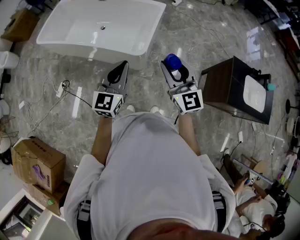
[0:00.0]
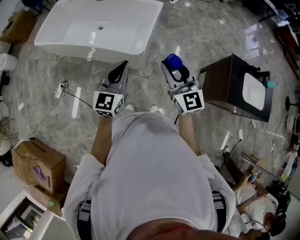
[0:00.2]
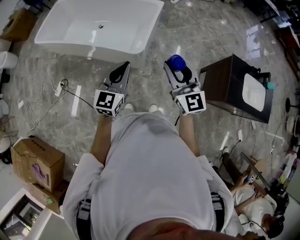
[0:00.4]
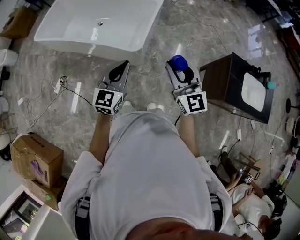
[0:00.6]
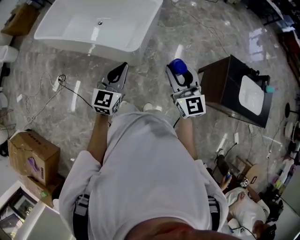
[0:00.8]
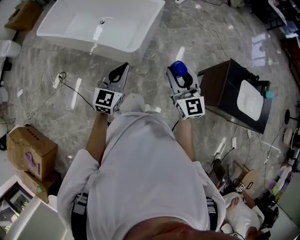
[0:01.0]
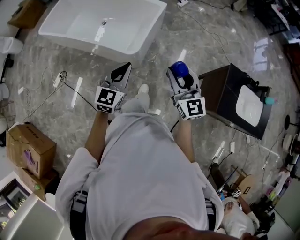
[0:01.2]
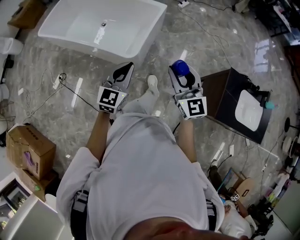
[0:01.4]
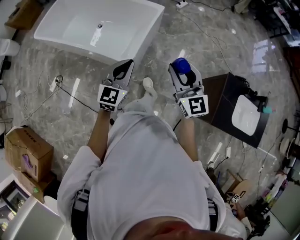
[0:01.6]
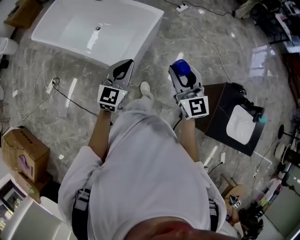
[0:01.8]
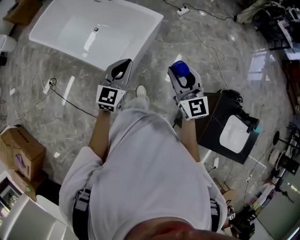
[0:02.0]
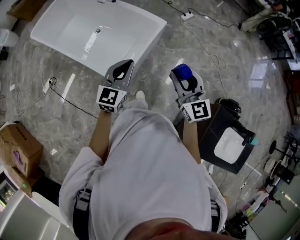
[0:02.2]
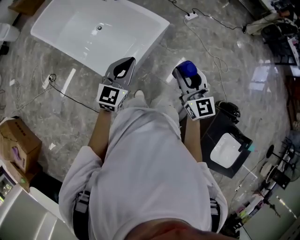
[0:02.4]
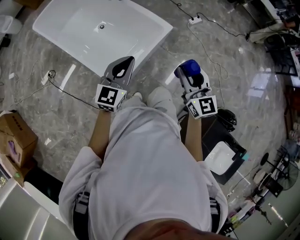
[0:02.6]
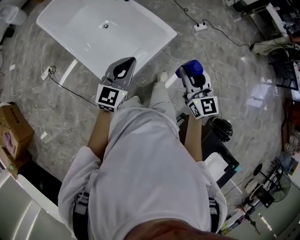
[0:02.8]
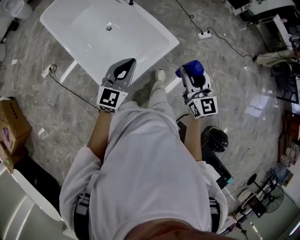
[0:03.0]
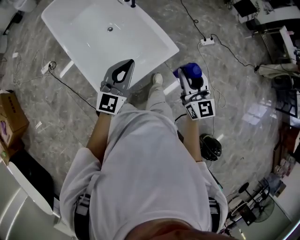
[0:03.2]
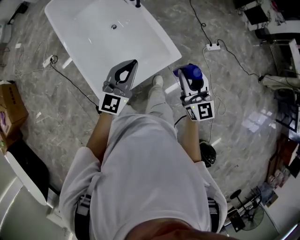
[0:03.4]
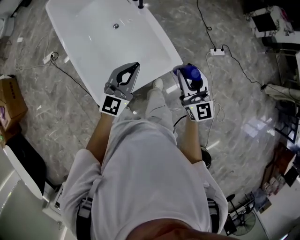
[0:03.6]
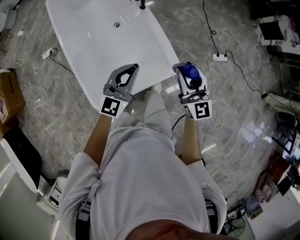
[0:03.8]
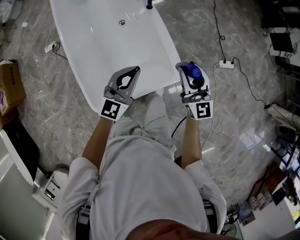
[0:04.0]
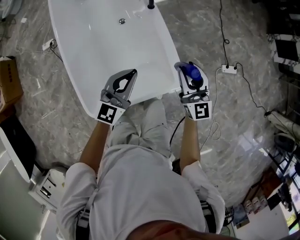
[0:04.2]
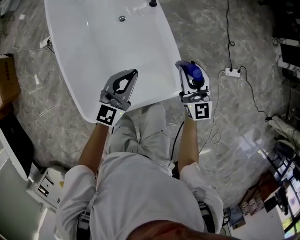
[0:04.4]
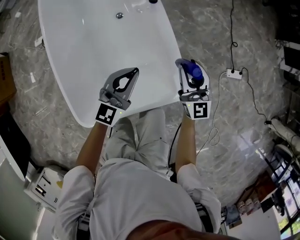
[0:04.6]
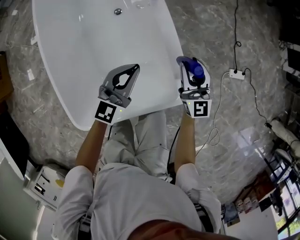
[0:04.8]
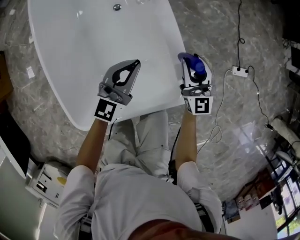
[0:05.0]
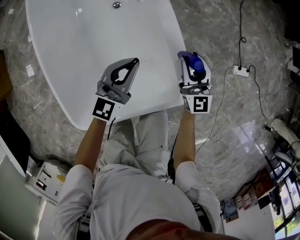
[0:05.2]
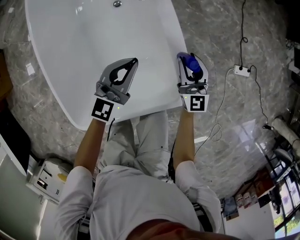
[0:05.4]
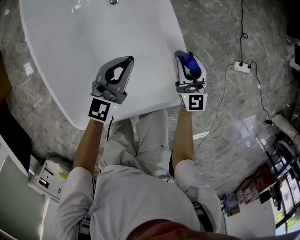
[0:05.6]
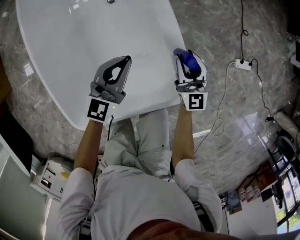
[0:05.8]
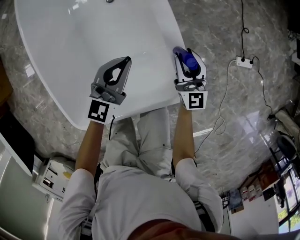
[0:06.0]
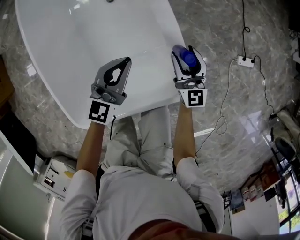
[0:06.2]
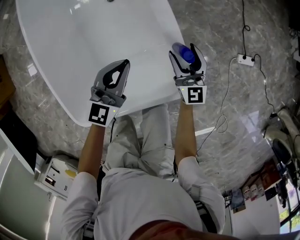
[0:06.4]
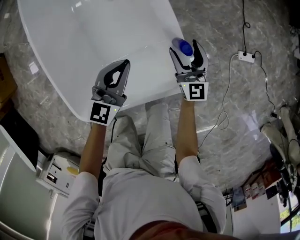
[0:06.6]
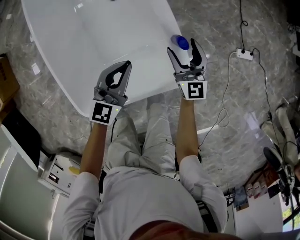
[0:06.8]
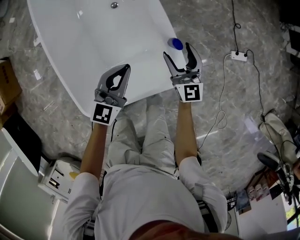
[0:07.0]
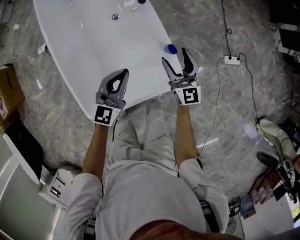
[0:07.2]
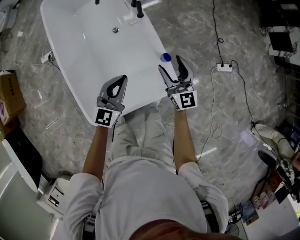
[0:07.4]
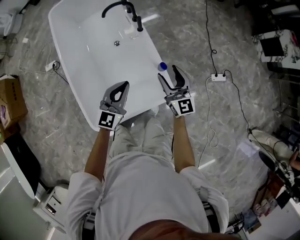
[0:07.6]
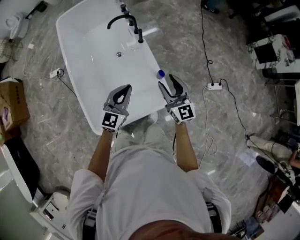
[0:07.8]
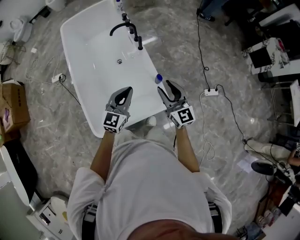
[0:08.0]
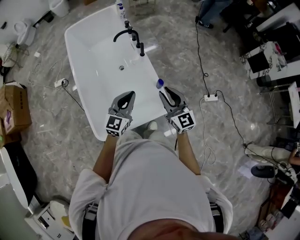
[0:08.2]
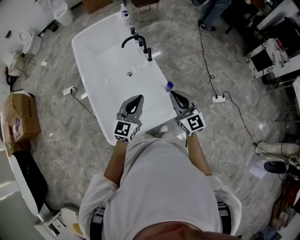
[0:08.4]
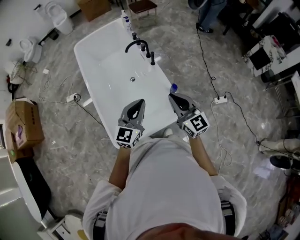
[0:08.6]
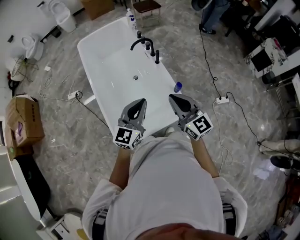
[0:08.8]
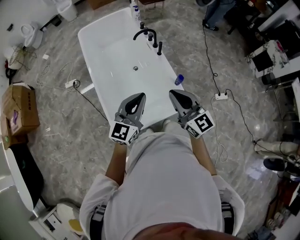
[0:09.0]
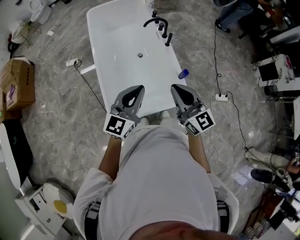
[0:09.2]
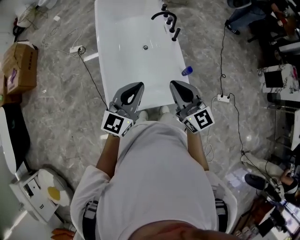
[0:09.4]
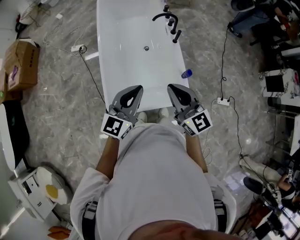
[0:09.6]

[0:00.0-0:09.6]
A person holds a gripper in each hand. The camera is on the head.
0:00.0 to 0:01.6: The grippers both shift to the right and forward by some 20 cm.
0:01.6 to 0:03.2: The two grippers travel together, about 50 cm. The left gripper swivels about 30 degrees. Meanwhile the right gripper swivels about 30 degrees.
0:03.2 to 0:04.8: The right gripper heads forward and downward, covering about 50 cm; the left gripper is displaced downward and forward by approximately 40 cm.
0:04.8 to 0:06.4: The right gripper moves downward, about 10 cm, and opens up.
0:06.4 to 0:08.0: The two grippers go approximately 35 cm upward.
0:08.0 to 0:09.6: Both grippers move to the left, upward and backward, roughly 20 cm. The right gripper changes its angle by some 20 degrees, and closes its fingers.

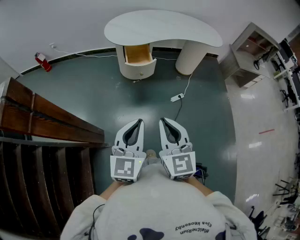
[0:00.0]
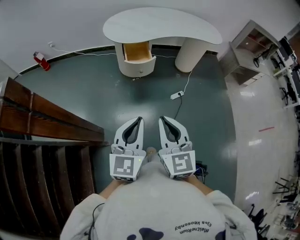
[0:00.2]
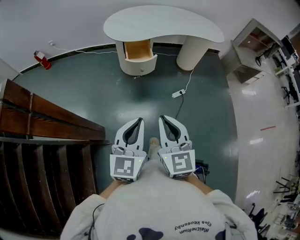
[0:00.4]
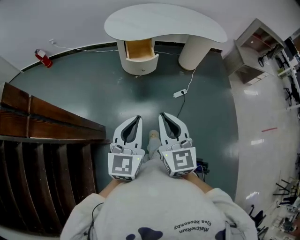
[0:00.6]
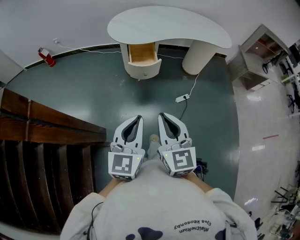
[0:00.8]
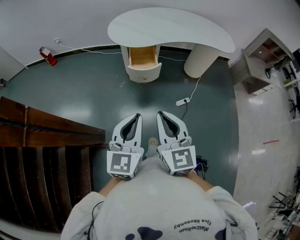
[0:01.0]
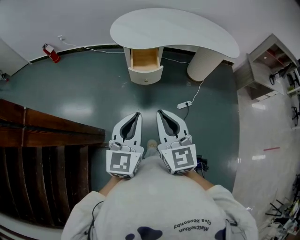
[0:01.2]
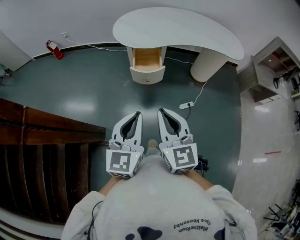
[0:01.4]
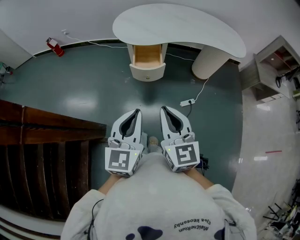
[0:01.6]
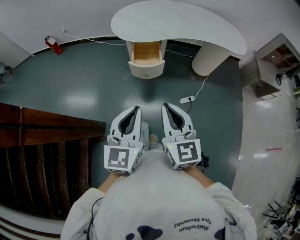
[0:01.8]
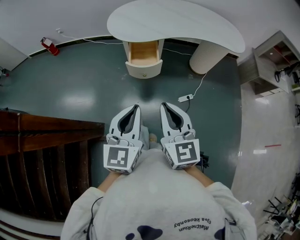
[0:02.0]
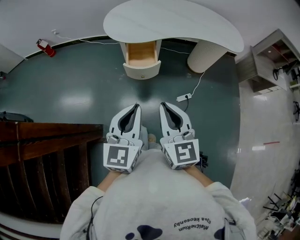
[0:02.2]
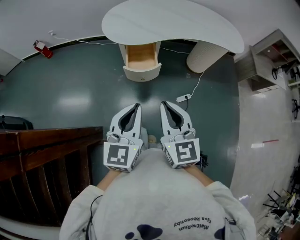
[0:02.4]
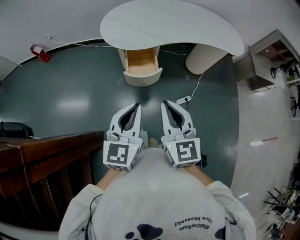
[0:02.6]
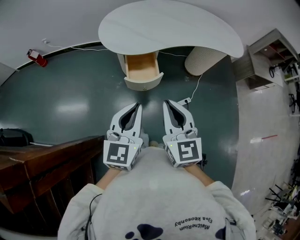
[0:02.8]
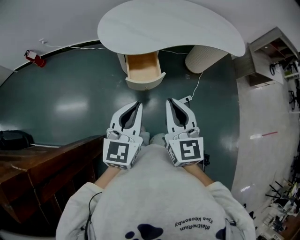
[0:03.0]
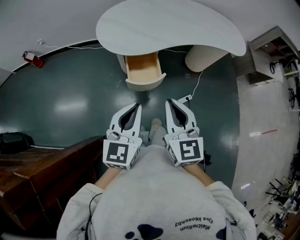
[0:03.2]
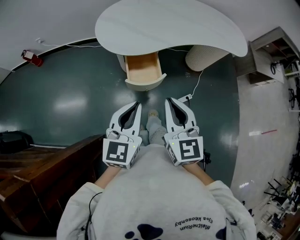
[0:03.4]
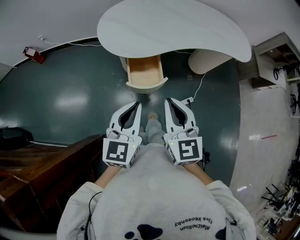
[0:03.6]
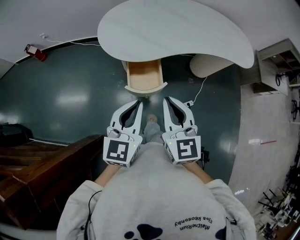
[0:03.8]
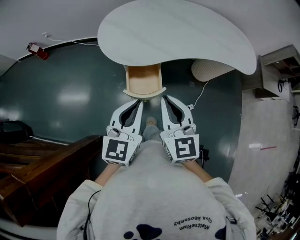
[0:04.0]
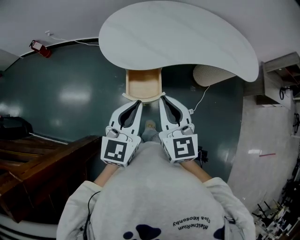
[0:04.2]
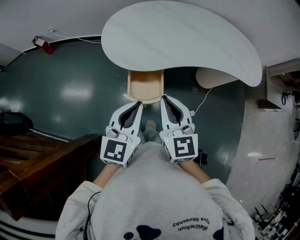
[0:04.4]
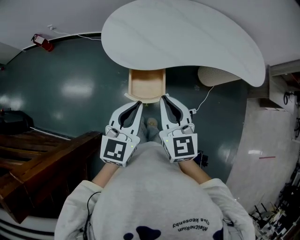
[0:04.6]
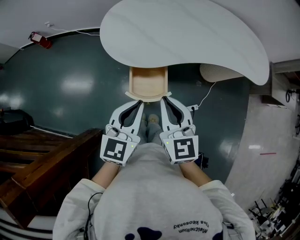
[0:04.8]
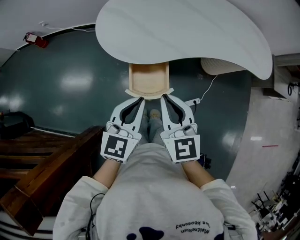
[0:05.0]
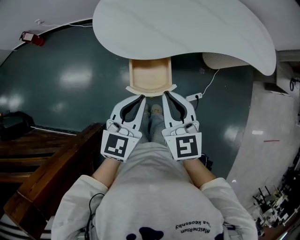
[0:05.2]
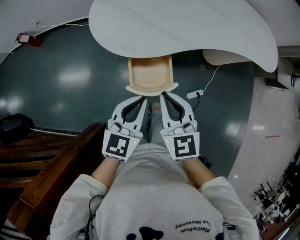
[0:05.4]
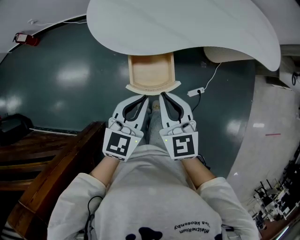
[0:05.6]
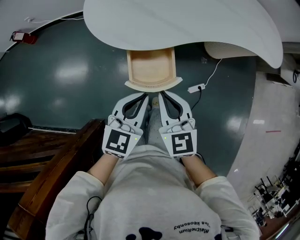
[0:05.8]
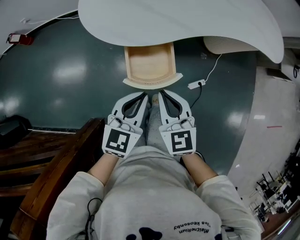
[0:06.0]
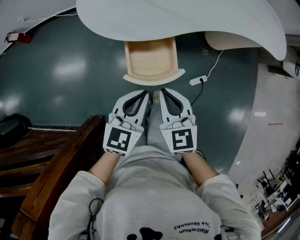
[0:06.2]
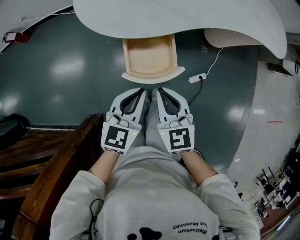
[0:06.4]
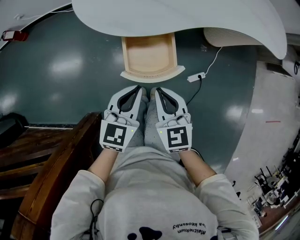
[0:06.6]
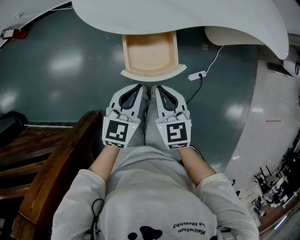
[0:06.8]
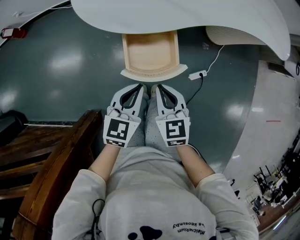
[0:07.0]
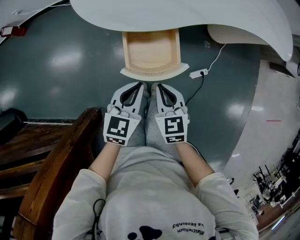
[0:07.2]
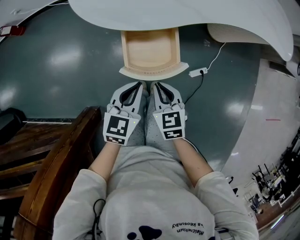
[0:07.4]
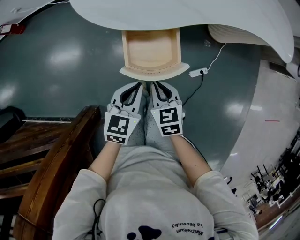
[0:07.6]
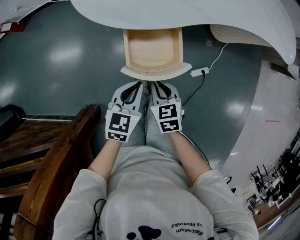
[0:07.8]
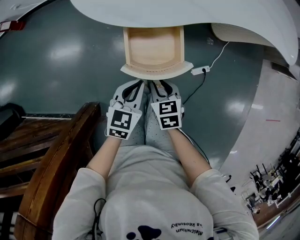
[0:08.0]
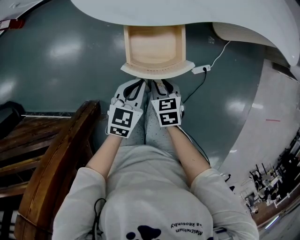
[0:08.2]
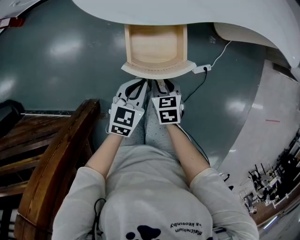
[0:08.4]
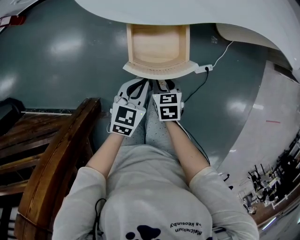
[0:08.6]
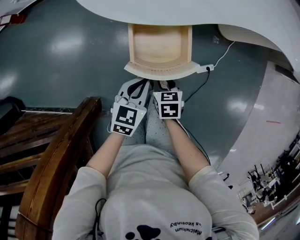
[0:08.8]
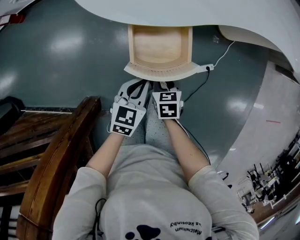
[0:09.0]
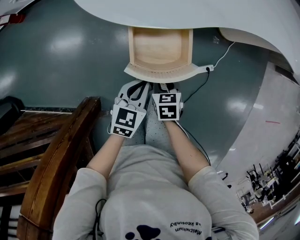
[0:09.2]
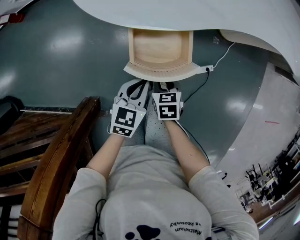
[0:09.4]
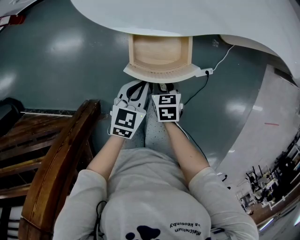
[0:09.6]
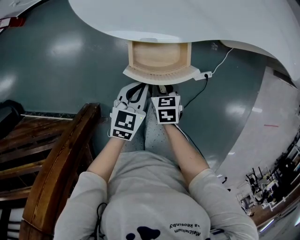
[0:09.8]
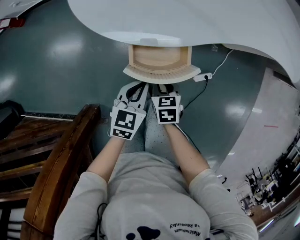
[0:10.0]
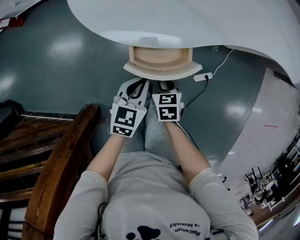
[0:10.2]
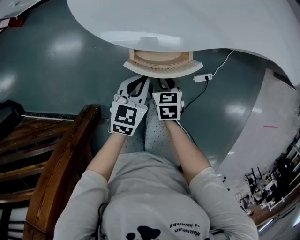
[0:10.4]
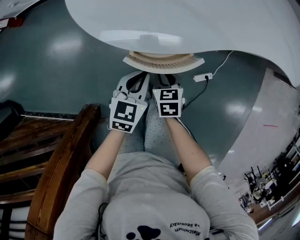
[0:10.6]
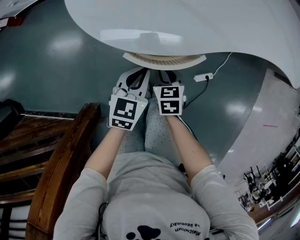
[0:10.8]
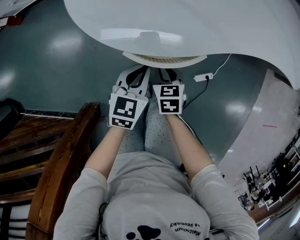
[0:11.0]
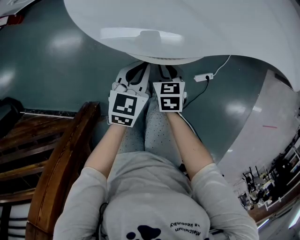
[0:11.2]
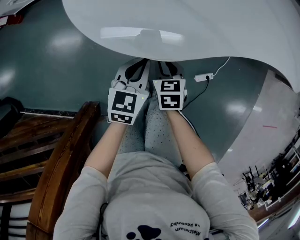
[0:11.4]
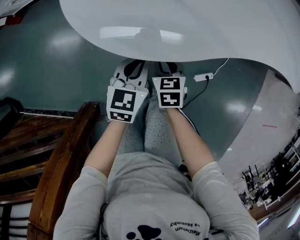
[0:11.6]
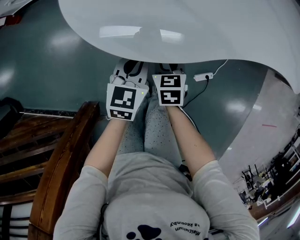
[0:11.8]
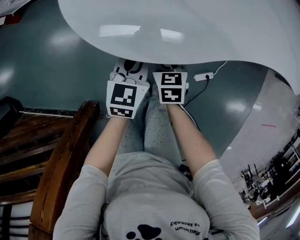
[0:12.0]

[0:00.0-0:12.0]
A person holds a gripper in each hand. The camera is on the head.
0:00.0 to 0:01.6: The two grippers go approximately 15 cm forward.
0:01.6 to 0:03.0: Both grippers move forward, roughly 20 cm.
0:03.0 to 0:04.4: The grippers both shift forward by roughly 15 cm.
0:04.4 to 0:06.0: Both grippers travel together downward, approximately 20 cm.
0:06.0 to 0:07.6: The two grippers go roughly 15 cm downward. The right gripper swivels some 20 degrees.
0:07.6 to 0:09.0: The right gripper moves downward, approximately 10 cm, and opens up. Meanwhile the left gripper goes approximately 5 cm downward.
0:09.0 to 0:10.4: Both grippers travel together forward, roughly 10 cm.
0:10.4 to 0:12.0: Both grippers move forward, some 10 cm.

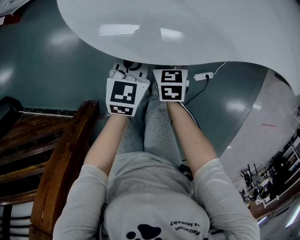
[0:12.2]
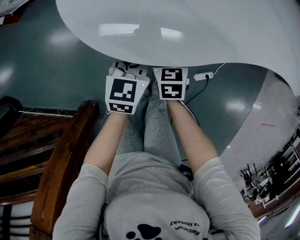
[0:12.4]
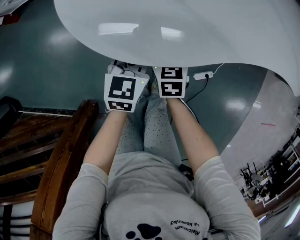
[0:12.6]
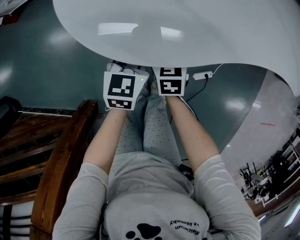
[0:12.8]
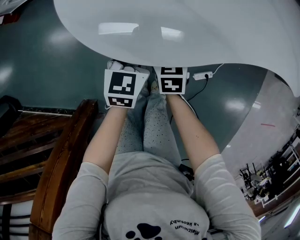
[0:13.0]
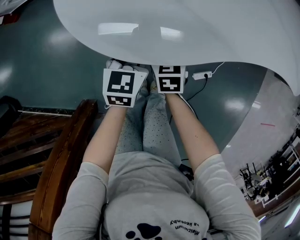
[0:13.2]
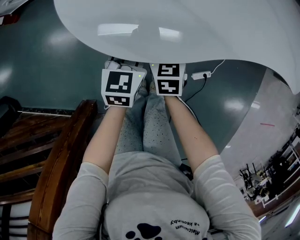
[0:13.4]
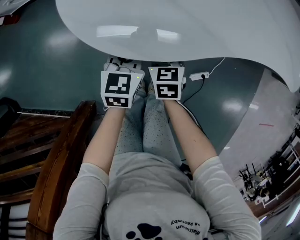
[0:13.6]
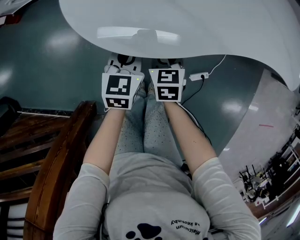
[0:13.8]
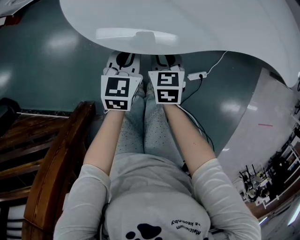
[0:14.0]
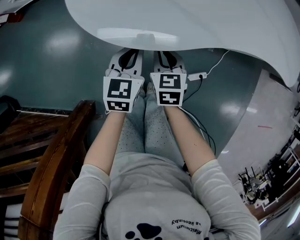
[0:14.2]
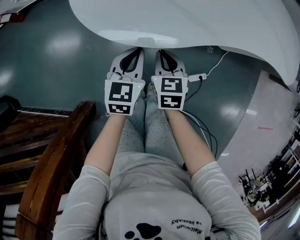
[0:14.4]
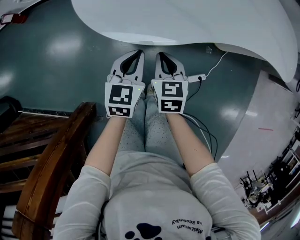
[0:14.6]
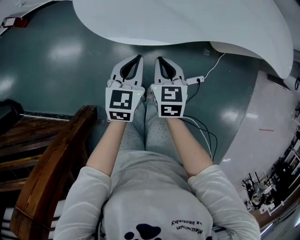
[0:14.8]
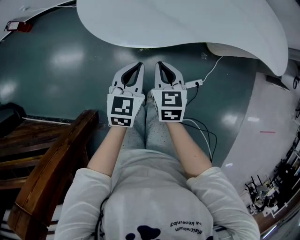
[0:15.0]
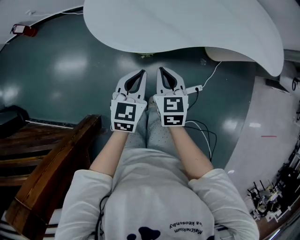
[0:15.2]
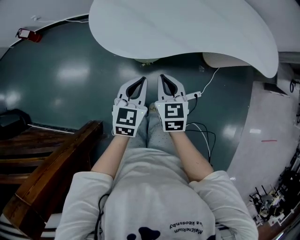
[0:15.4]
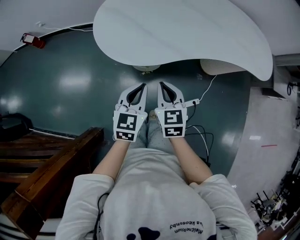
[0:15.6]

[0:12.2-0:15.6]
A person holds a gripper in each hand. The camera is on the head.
0:12.2 to 0:13.8: The grippers move only a little.
0:13.8 to 0:15.6: Both grippers move upward and backward, approximately 25 cm. The right gripper closes up.
